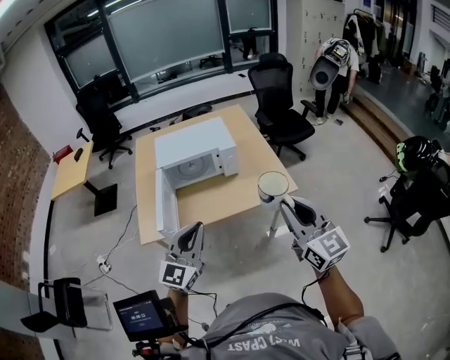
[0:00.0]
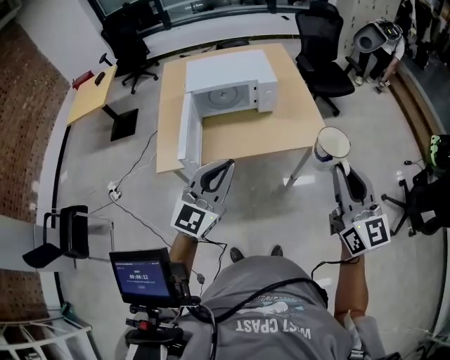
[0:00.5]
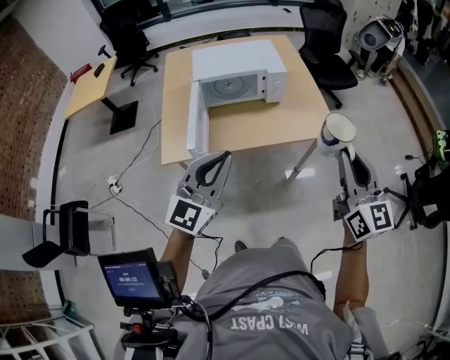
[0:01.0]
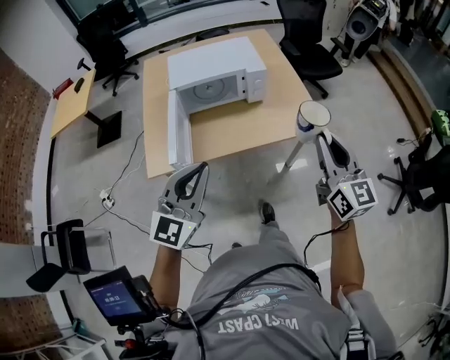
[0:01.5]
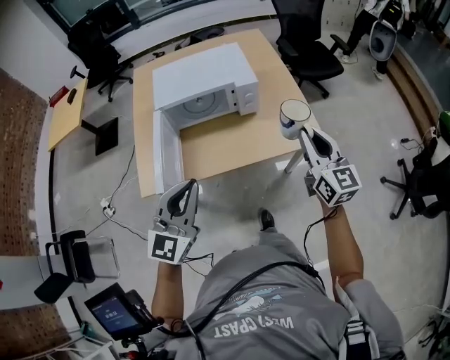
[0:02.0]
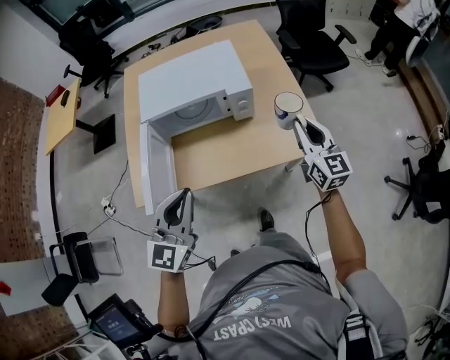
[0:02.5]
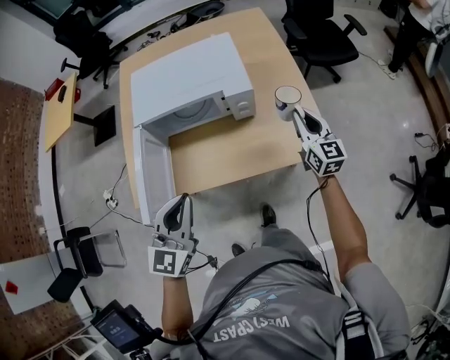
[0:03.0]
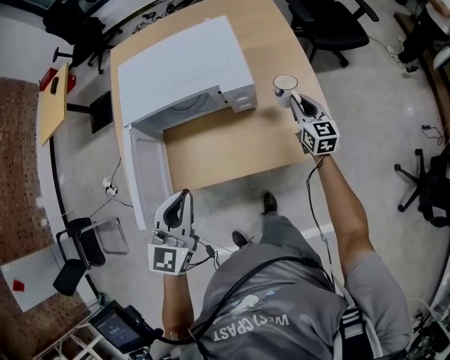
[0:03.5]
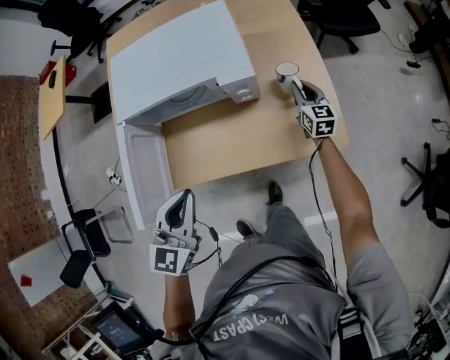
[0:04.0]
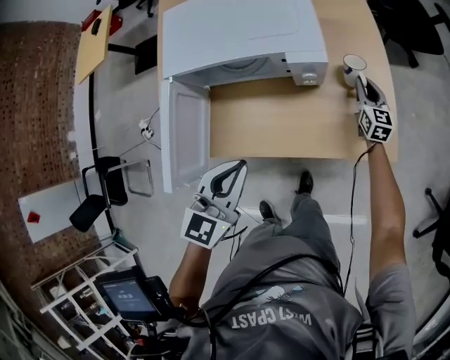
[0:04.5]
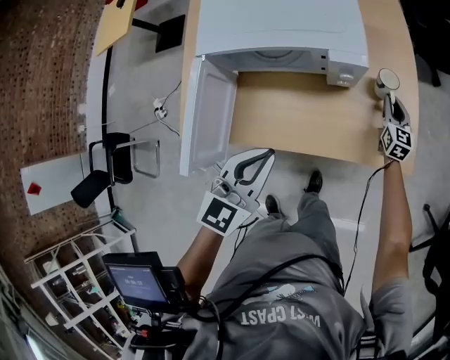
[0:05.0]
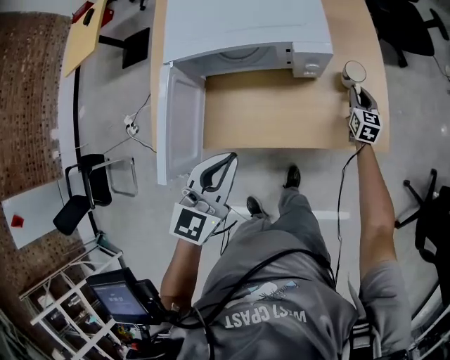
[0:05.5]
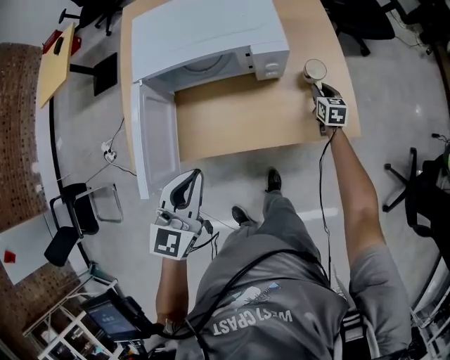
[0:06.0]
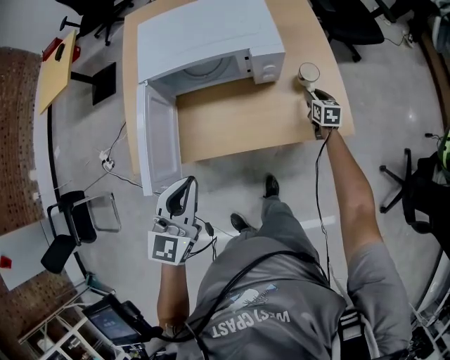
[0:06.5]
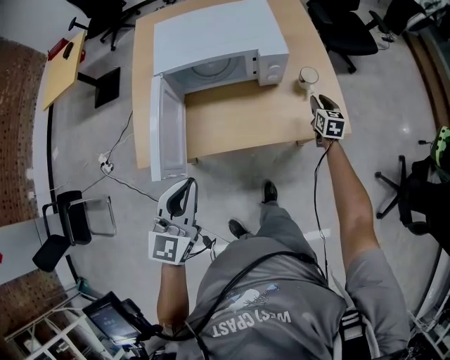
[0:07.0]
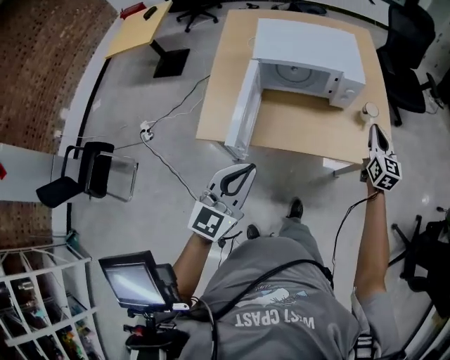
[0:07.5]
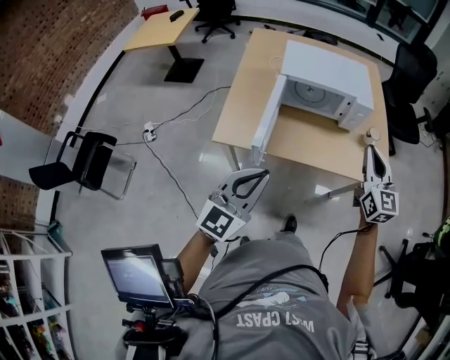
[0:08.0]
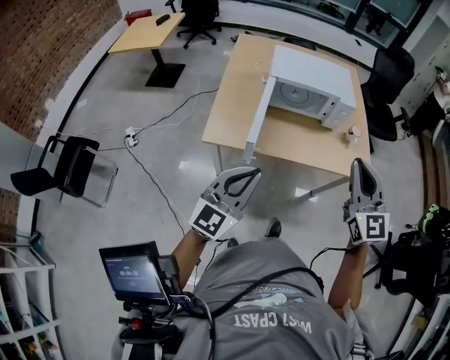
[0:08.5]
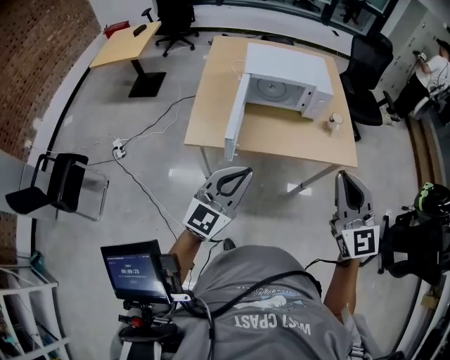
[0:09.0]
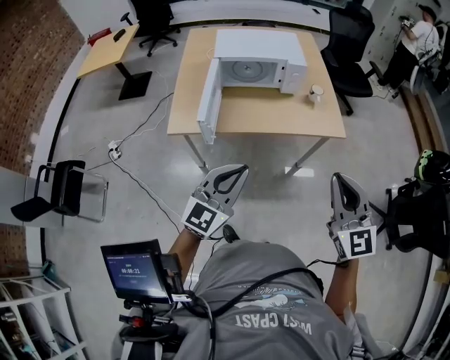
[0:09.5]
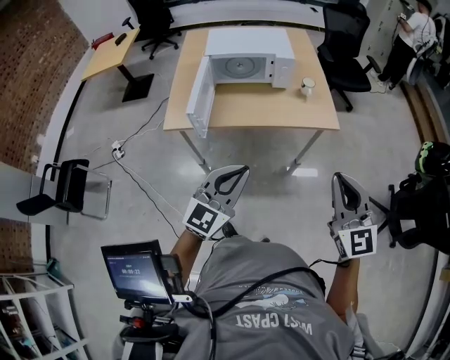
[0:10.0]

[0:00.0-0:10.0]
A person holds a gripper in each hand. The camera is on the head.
0.0 to 2.0 s: The right gripper shifts roughly 25 cm forward and downward; the left gripper is displaced forward and to the left by about 10 cm.
2.0 to 4.0 s: The right gripper heads forward and downward, covering about 50 cm, and swivels some 20 degrees, while the left gripper is displaced forward and downward by about 25 cm, and turns by some 20 degrees.
4.0 to 6.0 s: The right gripper travels downward by some 5 cm. Meanwhile the left gripper shifts by approximately 5 cm.
6.0 to 8.0 s: The left gripper is displaced backward, to the left and upward by roughly 30 cm, and swivels roughly 20 degrees. The right gripper goes about 60 cm upward, backward and to the left, and angles its fingers upward, by approximately 40 degrees.
8.0 to 10.0 s: The right gripper shifts about 35 cm backward and to the right; the left gripper travels to the right and backward by approximately 25 cm.

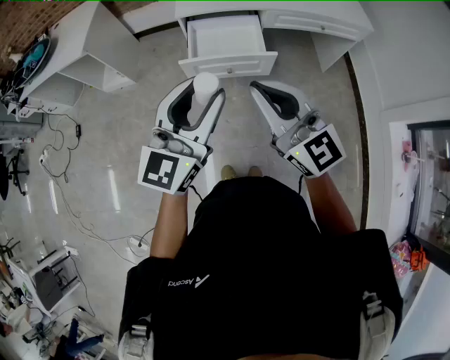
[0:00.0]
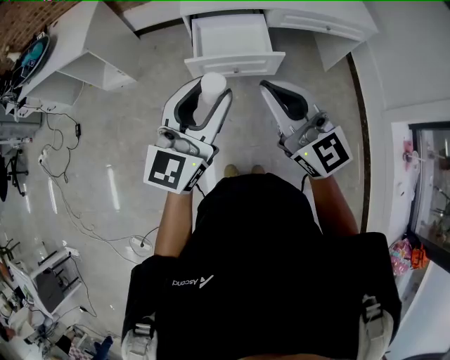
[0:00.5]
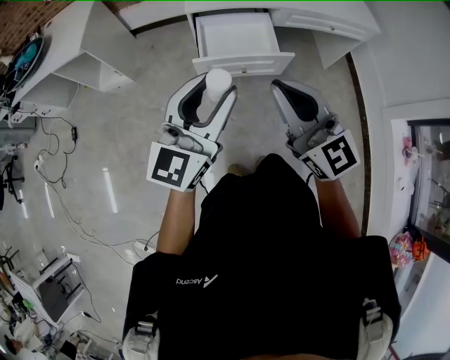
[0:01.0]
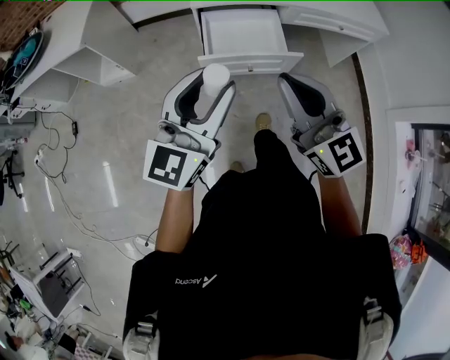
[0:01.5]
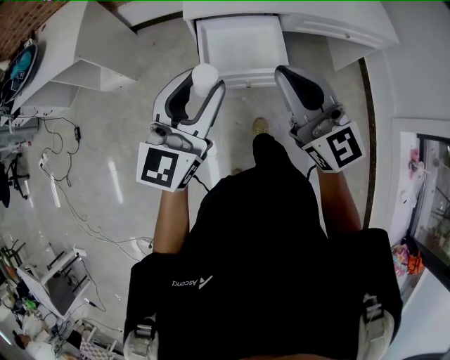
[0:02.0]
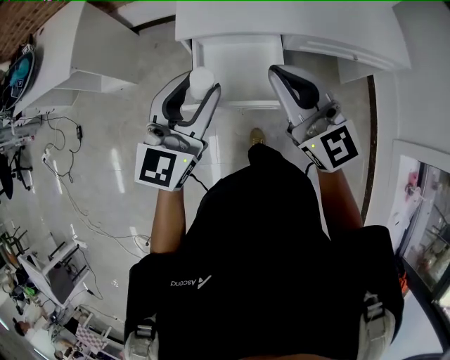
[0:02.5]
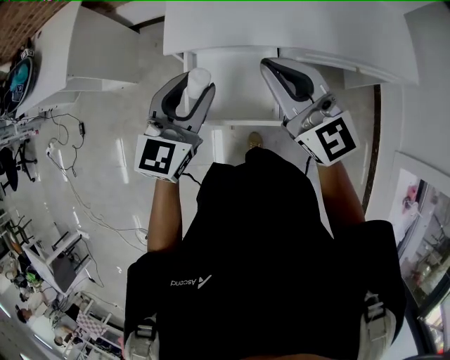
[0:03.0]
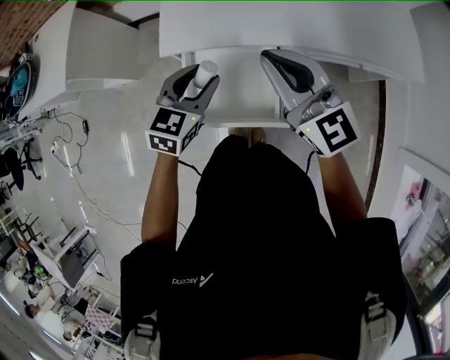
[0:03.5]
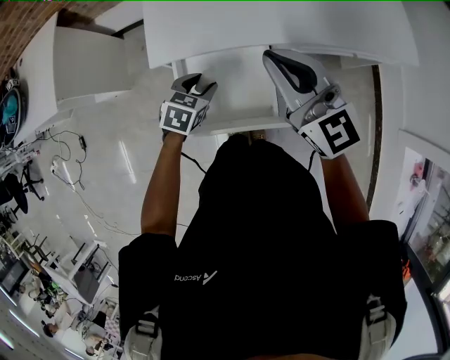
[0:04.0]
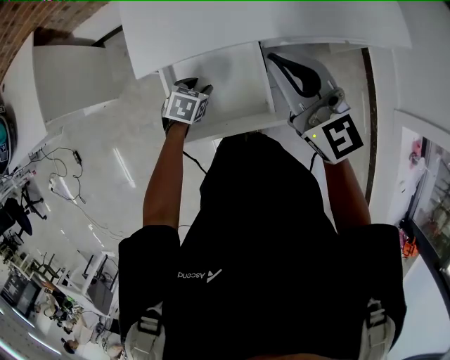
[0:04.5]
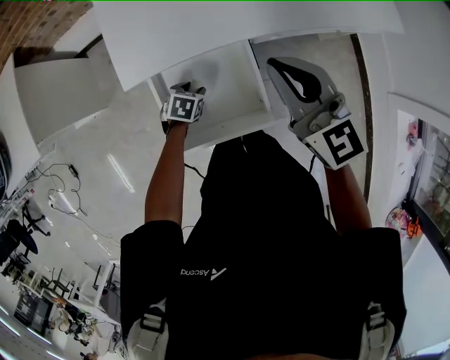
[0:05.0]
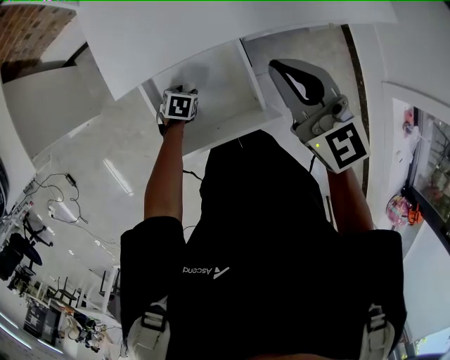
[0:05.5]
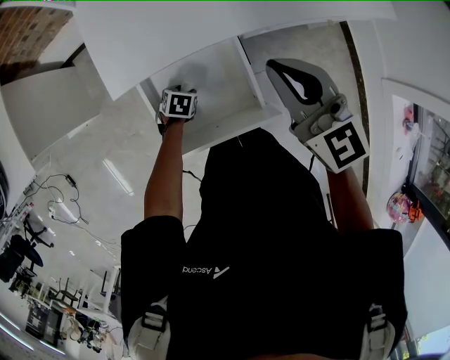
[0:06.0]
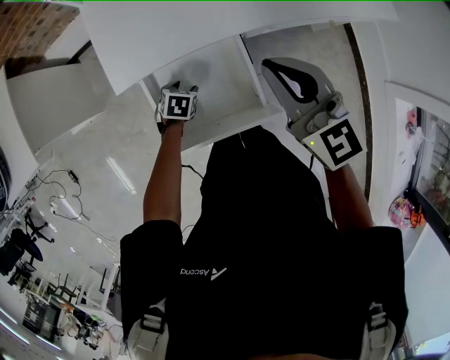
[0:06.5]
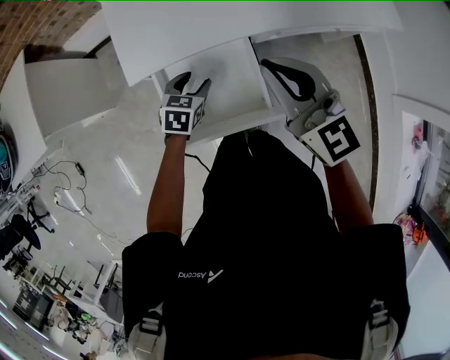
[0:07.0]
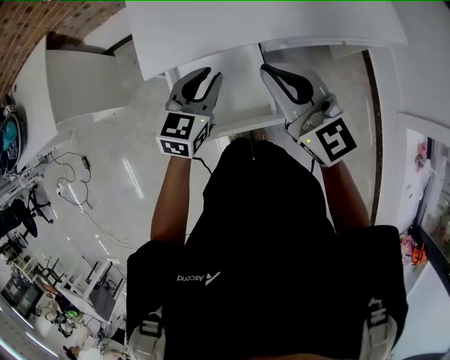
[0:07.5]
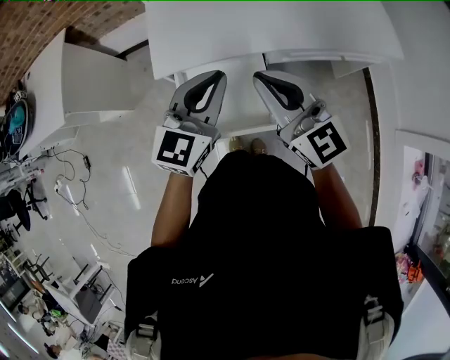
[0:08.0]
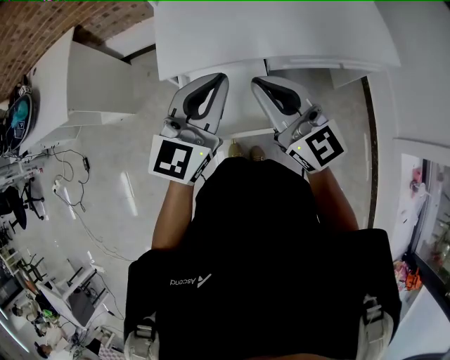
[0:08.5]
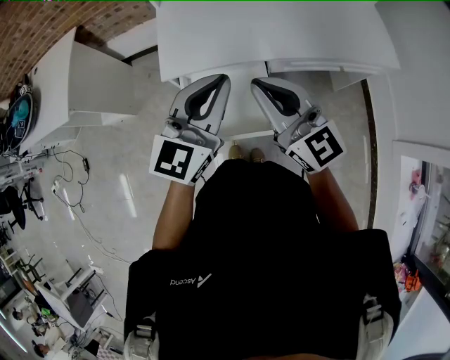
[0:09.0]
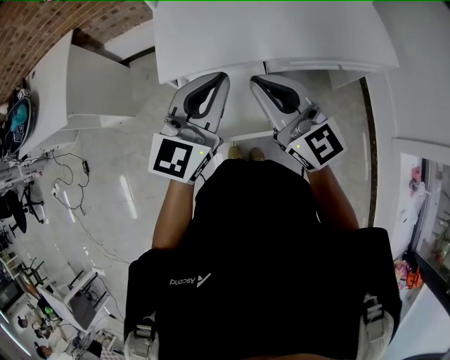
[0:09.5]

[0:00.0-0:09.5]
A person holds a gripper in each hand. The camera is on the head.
0.0 to 2.0 s: Both grippers move forward, roughly 20 cm.
2.0 to 4.0 s: The right gripper travels forward by some 35 cm. The left gripper is displaced forward and downward by approximately 40 cm, and angles its fingers downward, by about 60 degrees.
4.0 to 5.5 s: The left gripper is displaced downward by roughly 20 cm, and swivels some 20 degrees, while the right gripper moves downward, about 5 cm.
5.5 to 7.5 s: The right gripper heads upward and backward, covering about 10 cm, while the left gripper is displaced upward by approximately 35 cm, and points its fingers roughly 40 degrees further upward.
7.5 to 9.5 s: The right gripper moves upward, approximately 5 cm, while the left gripper travels upward by about 20 cm, swivels roughly 30 degrees, and closes up.

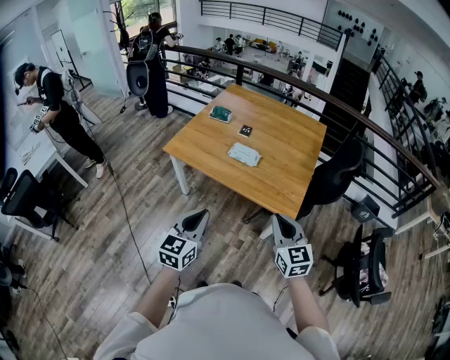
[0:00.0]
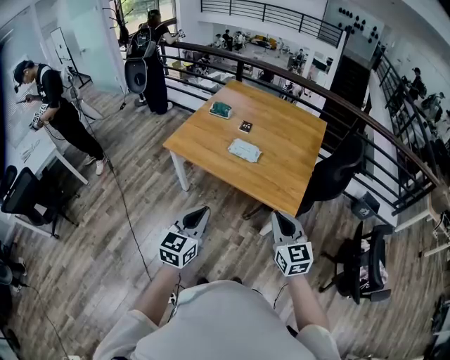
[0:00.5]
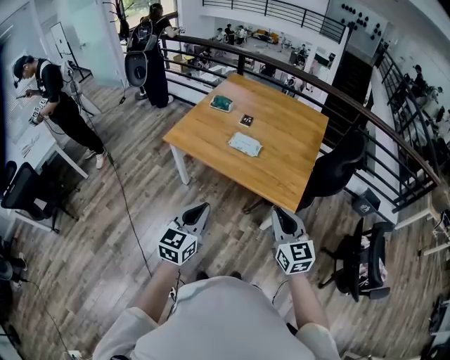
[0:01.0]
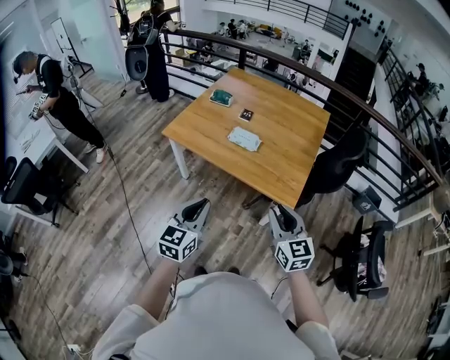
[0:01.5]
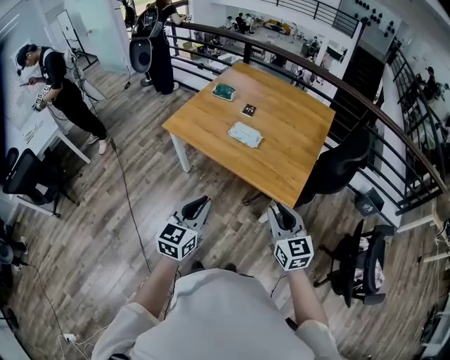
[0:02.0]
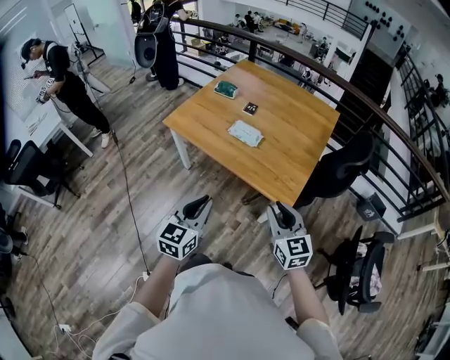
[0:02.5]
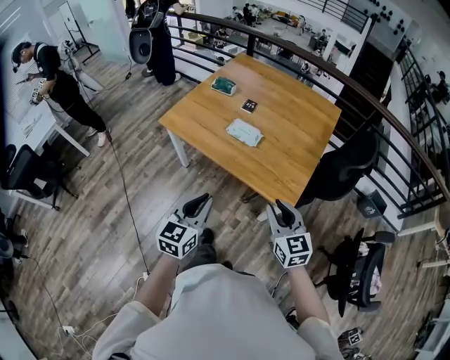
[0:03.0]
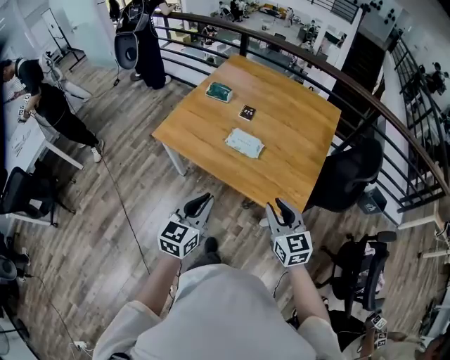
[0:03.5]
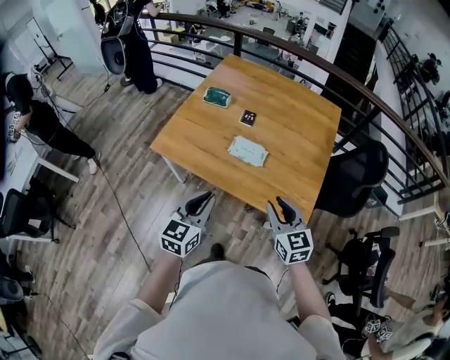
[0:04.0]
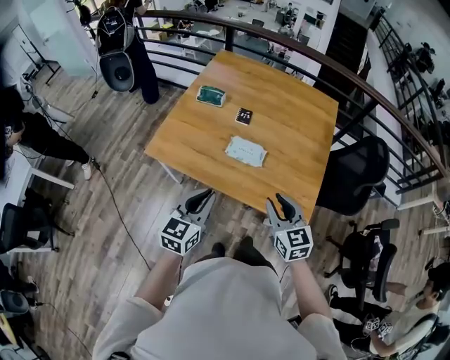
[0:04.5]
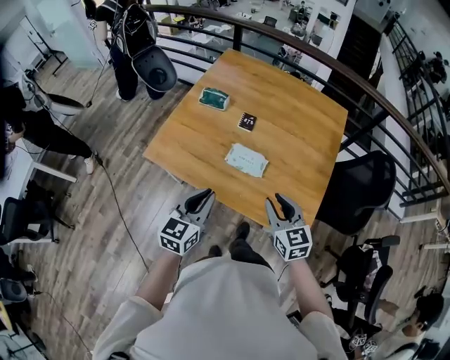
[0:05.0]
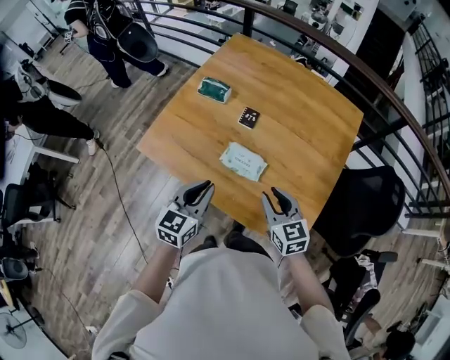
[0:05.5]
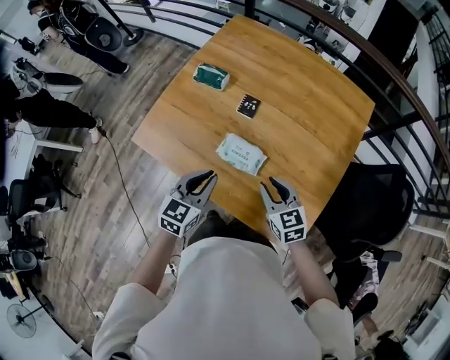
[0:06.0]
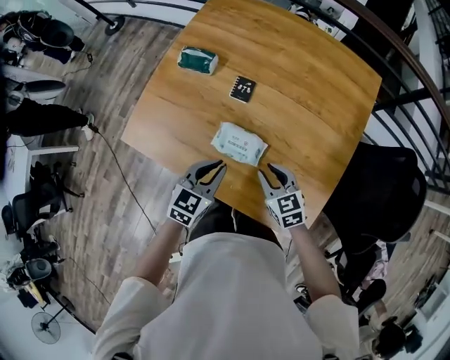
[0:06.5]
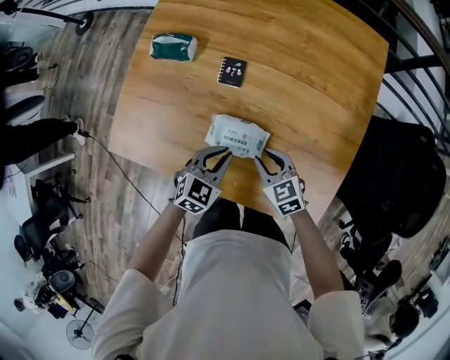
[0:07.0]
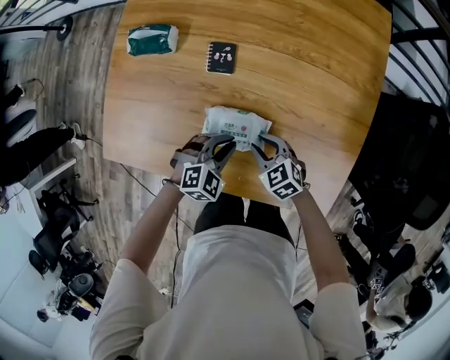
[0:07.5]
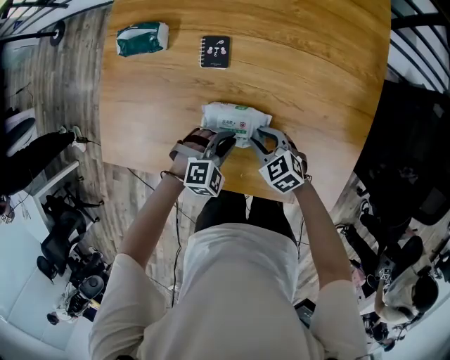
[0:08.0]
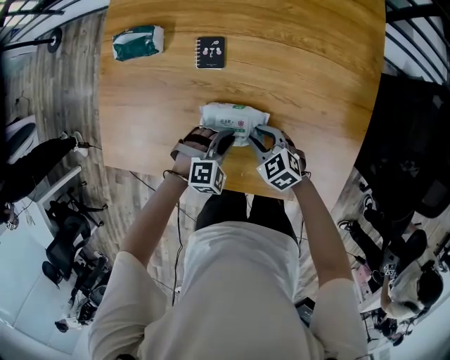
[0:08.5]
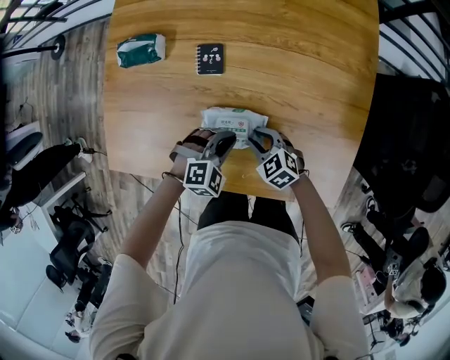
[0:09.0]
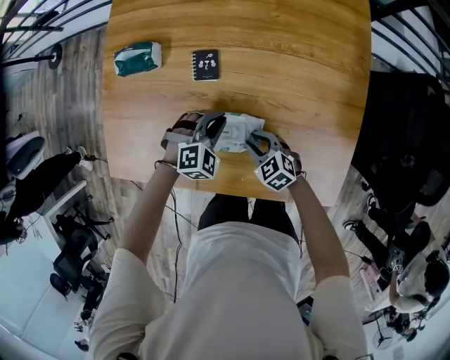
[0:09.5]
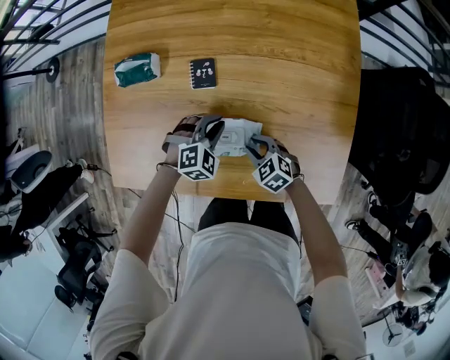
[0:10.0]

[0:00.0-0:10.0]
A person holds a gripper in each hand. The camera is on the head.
0.0 to 2.0 s: The left gripper changes place by roughly 5 cm.
2.0 to 4.0 s: The two grippers go roughly 25 cm forward.
4.0 to 6.0 s: The left gripper travels forward by about 25 cm, while the right gripper is displaced forward and downward by roughly 30 cm.
6.0 to 8.0 s: The grippers both shift downward by some 25 cm. The left gripper changes its angle by about 70 degrees.
8.0 to 10.0 s: The left gripper shifts about 10 cm forward.
